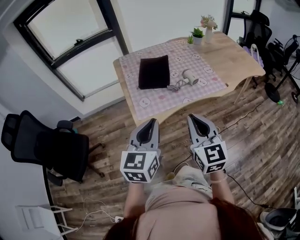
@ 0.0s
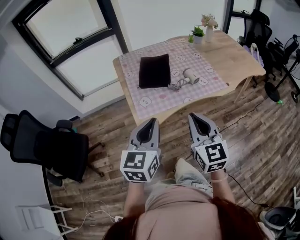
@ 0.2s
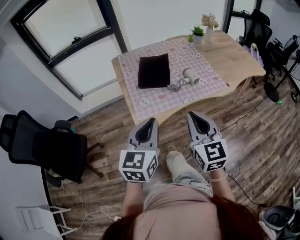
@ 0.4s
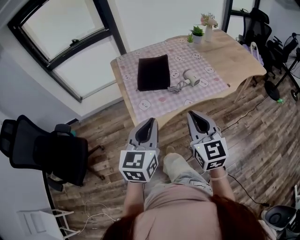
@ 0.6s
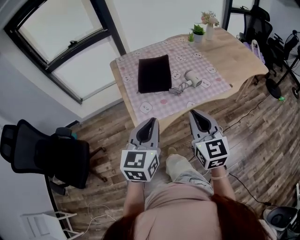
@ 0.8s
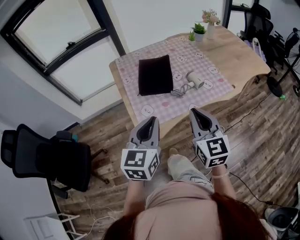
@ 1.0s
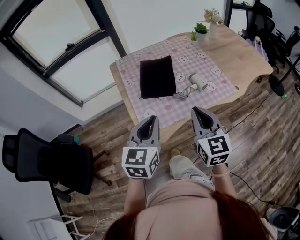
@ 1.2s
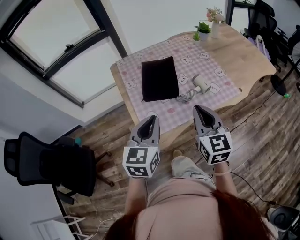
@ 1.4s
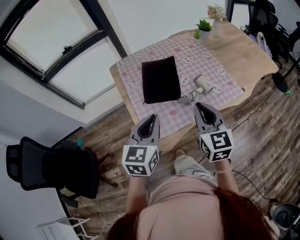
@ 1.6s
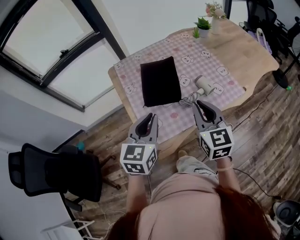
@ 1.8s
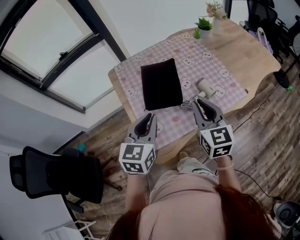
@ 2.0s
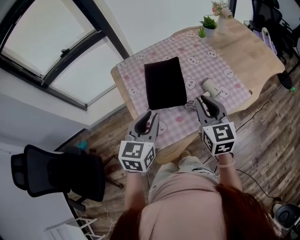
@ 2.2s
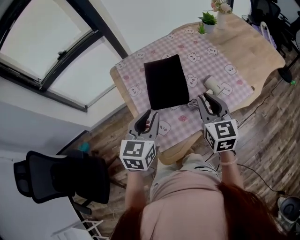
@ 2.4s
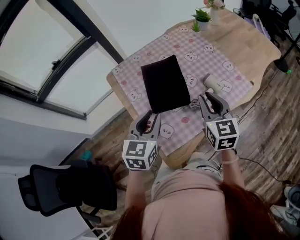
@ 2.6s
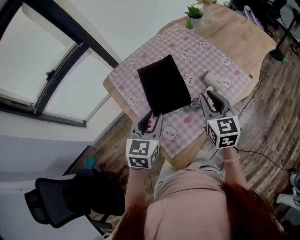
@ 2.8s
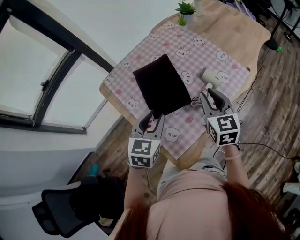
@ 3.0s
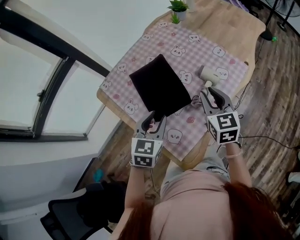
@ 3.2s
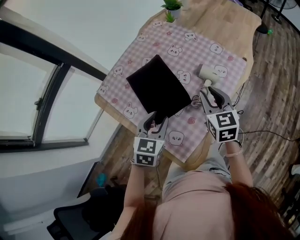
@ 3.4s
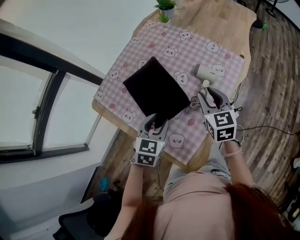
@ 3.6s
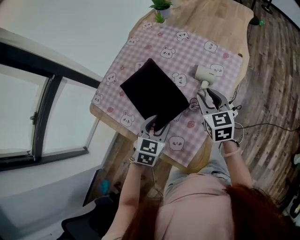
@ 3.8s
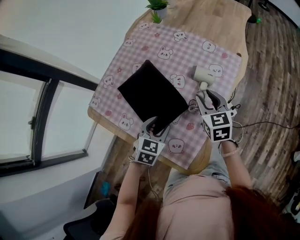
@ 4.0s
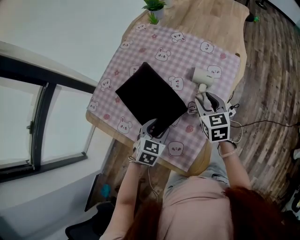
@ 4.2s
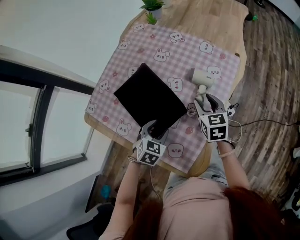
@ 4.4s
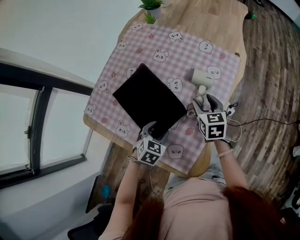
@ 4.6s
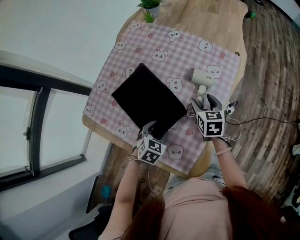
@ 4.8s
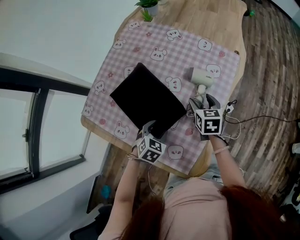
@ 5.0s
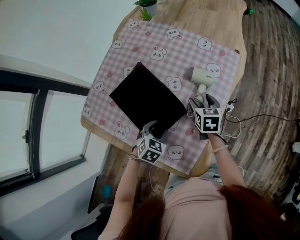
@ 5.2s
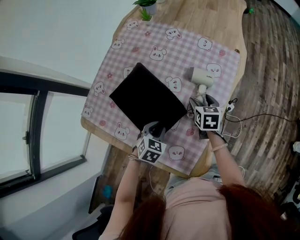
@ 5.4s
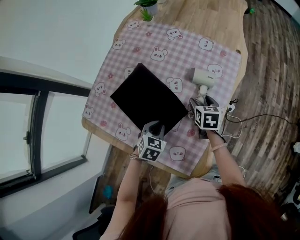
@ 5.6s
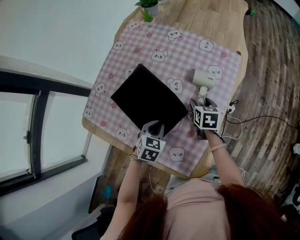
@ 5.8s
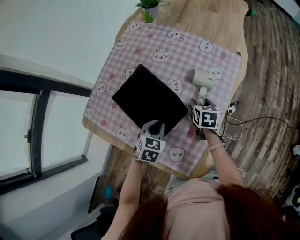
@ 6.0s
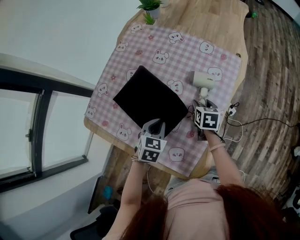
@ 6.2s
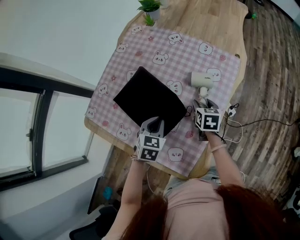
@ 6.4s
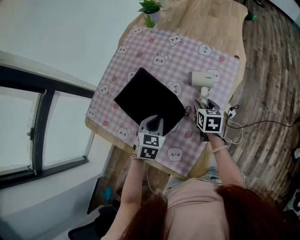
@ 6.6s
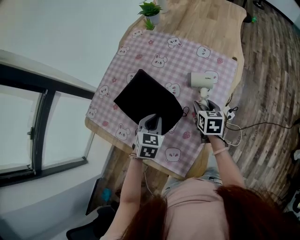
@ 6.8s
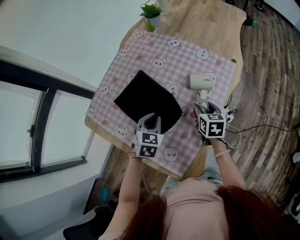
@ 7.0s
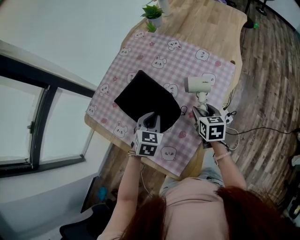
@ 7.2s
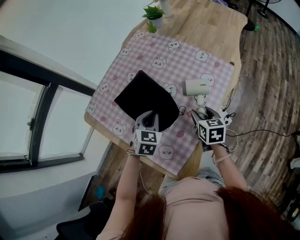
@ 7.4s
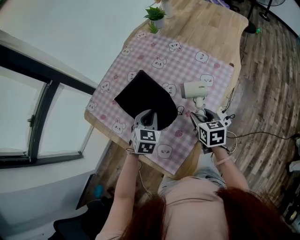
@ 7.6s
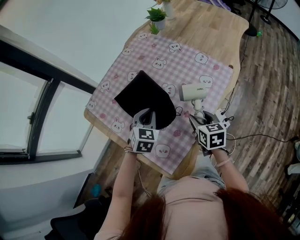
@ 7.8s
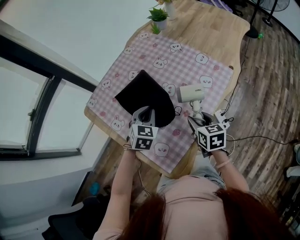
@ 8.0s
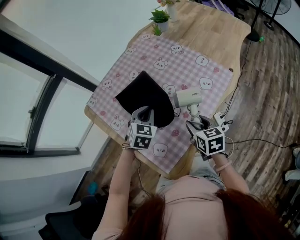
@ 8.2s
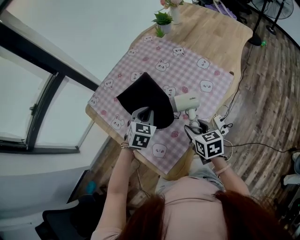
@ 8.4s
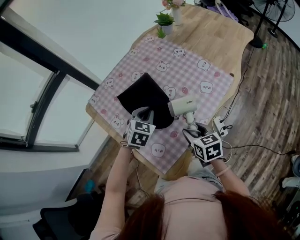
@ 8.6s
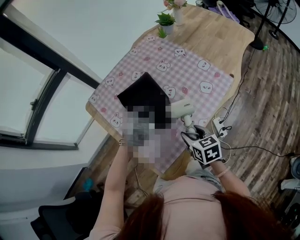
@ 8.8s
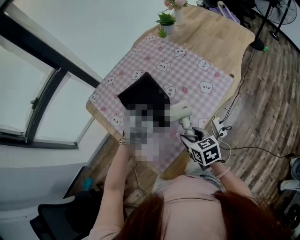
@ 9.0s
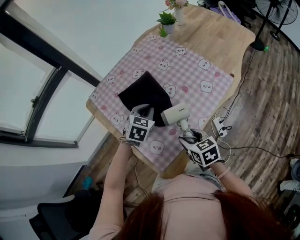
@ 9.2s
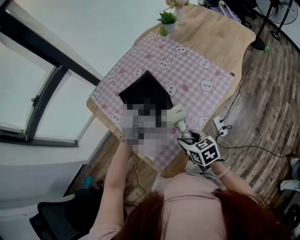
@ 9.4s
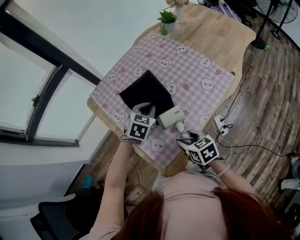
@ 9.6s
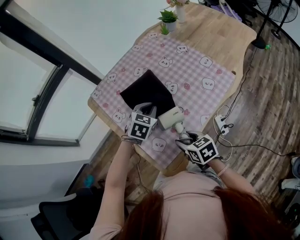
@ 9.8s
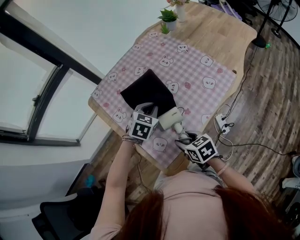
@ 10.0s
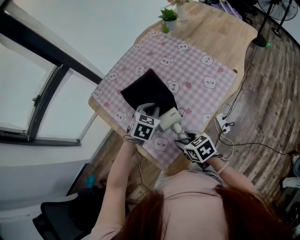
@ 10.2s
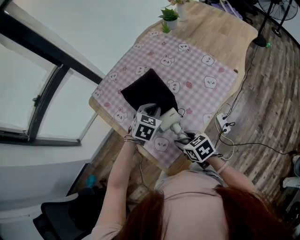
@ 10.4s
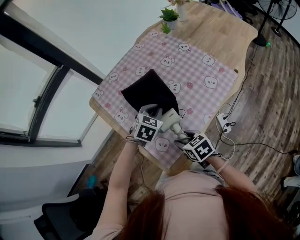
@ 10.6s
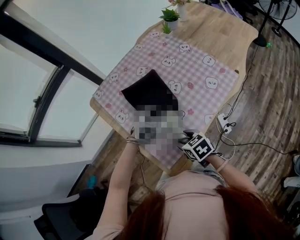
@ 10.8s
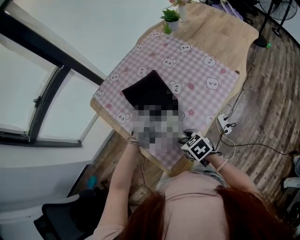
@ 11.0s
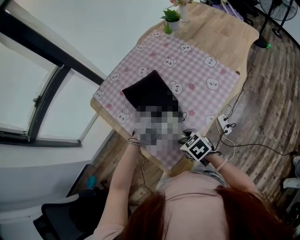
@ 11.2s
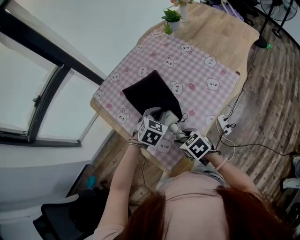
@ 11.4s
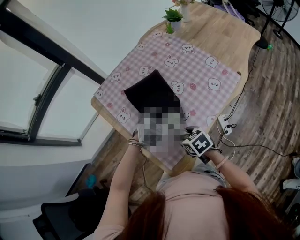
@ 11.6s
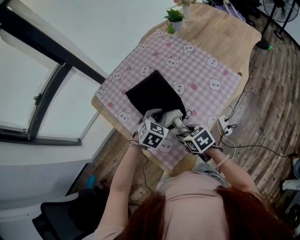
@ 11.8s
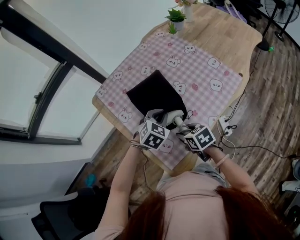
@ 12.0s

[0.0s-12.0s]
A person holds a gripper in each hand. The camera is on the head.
0.0s to 1.6s: Both grippers move forward, about 20 cm.
1.6s to 3.0s: The right gripper goes about 15 cm forward and downward, and swivels some 20 degrees. The left gripper is displaced forward, downward and to the left by about 20 cm, rotates about 30 degrees, and opens.
3.0s to 4.4s: The left gripper moves downward, some 20 cm, and swivels roughly 40 degrees, while the right gripper travels downward and forward by about 15 cm, and changes its angle by roughly 20 degrees.
4.4s to 6.0s: The left gripper closes its fingers. The right gripper shifts approximately 10 cm downward, and changes its angle by about 20 degrees.
6.0s to 7.6s: The right gripper heads upward and backward, covering approximately 10 cm, and changes its angle by approximately 20 degrees; the left gripper heads upward, covering roughly 10 cm.
7.6s to 9.0s: The right gripper goes roughly 10 cm backward and to the left, and rotates about 20 degrees.
9.0s to 10.4s: The right gripper travels to the left by approximately 5 cm.
10.4s to 12.0s: The grippers move only a little.

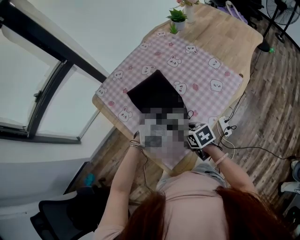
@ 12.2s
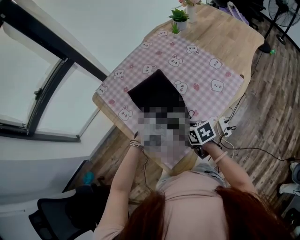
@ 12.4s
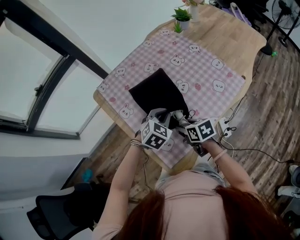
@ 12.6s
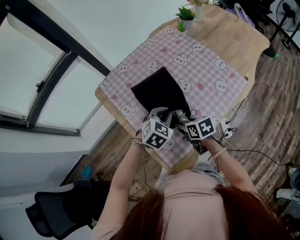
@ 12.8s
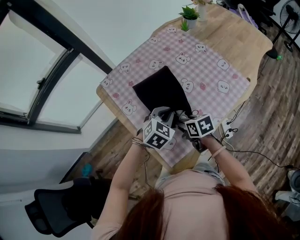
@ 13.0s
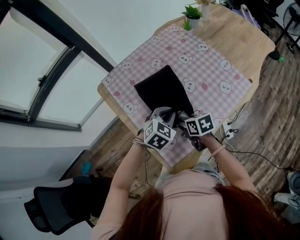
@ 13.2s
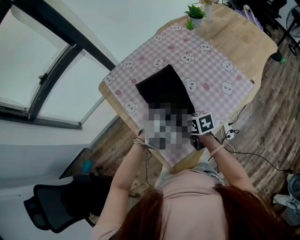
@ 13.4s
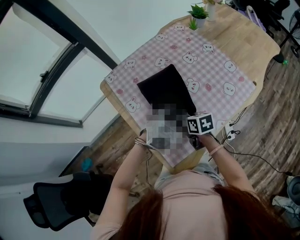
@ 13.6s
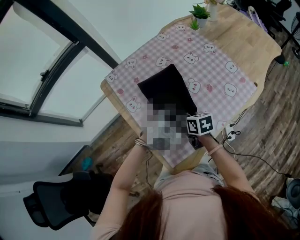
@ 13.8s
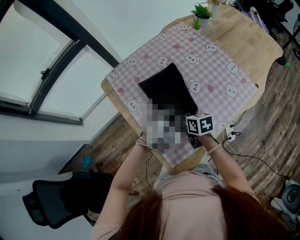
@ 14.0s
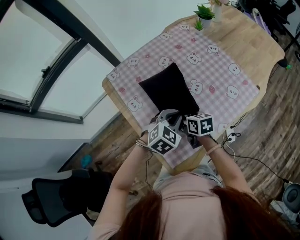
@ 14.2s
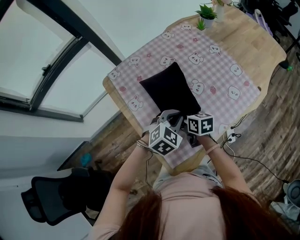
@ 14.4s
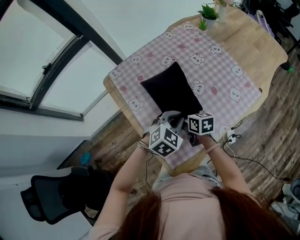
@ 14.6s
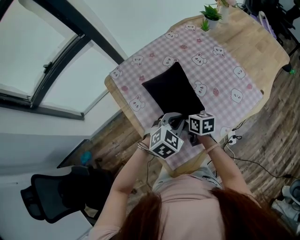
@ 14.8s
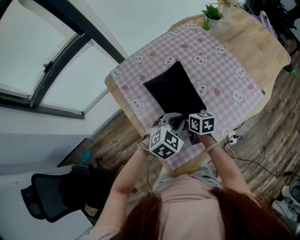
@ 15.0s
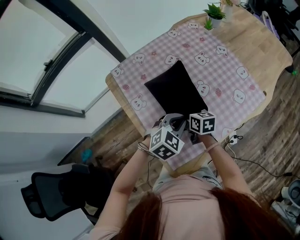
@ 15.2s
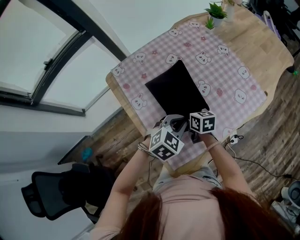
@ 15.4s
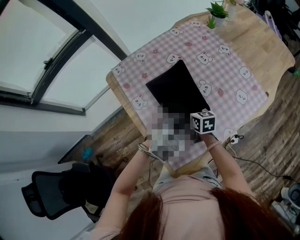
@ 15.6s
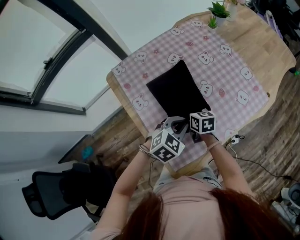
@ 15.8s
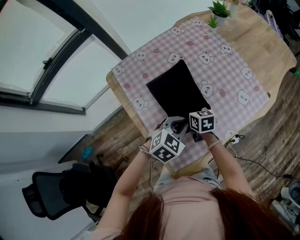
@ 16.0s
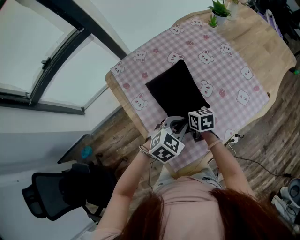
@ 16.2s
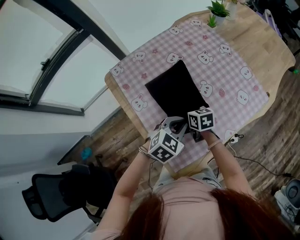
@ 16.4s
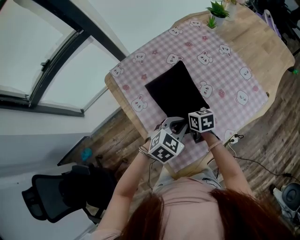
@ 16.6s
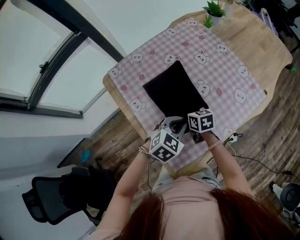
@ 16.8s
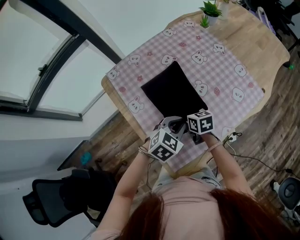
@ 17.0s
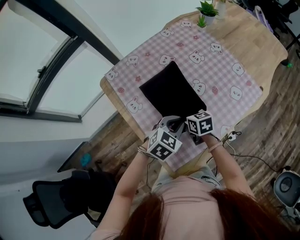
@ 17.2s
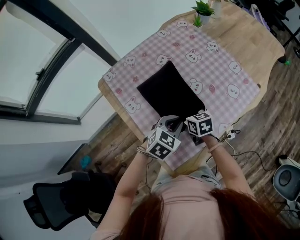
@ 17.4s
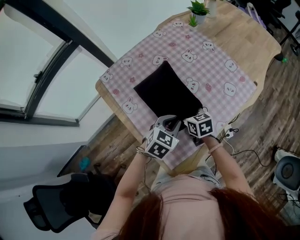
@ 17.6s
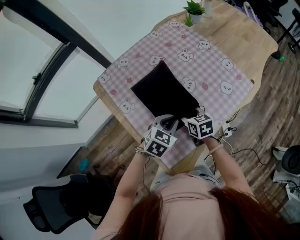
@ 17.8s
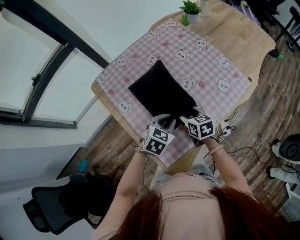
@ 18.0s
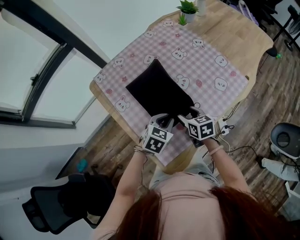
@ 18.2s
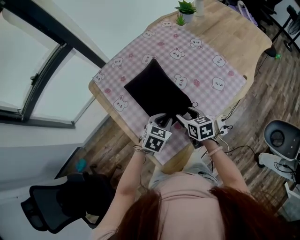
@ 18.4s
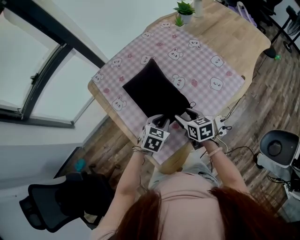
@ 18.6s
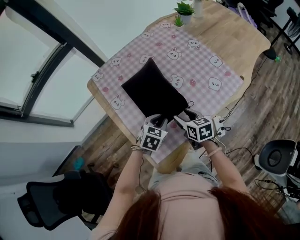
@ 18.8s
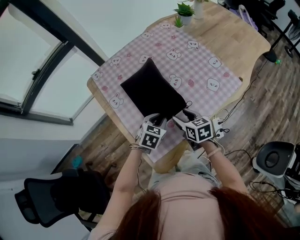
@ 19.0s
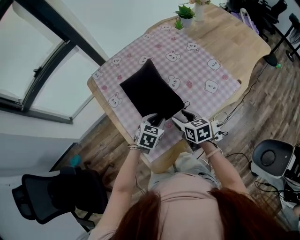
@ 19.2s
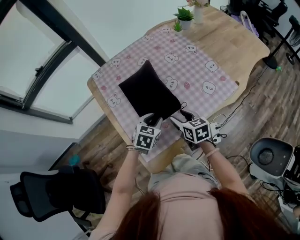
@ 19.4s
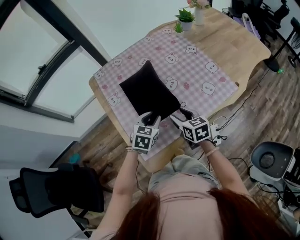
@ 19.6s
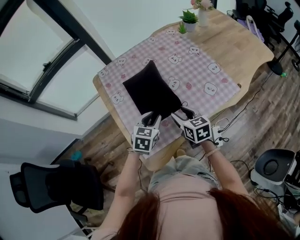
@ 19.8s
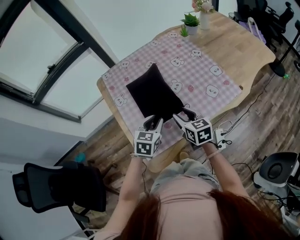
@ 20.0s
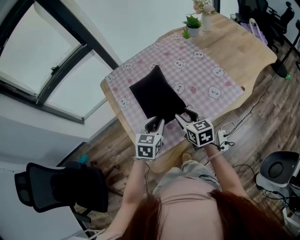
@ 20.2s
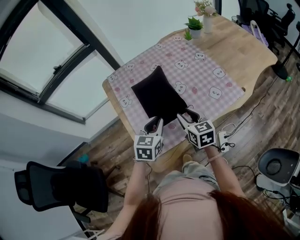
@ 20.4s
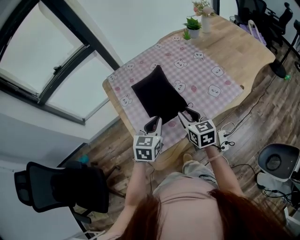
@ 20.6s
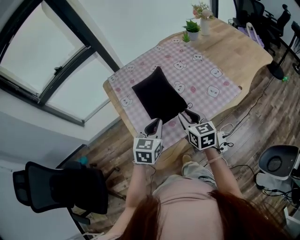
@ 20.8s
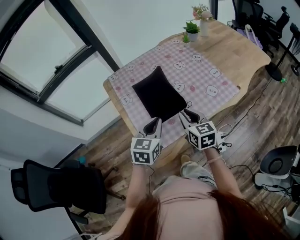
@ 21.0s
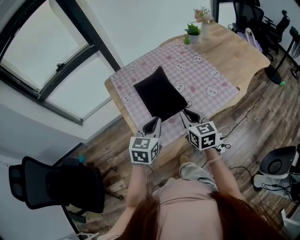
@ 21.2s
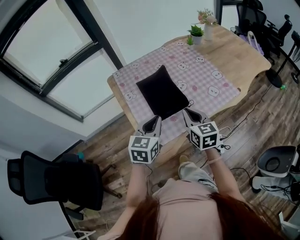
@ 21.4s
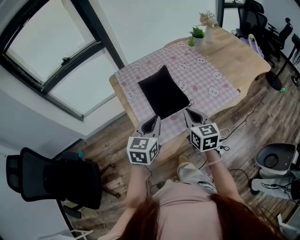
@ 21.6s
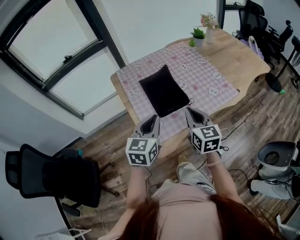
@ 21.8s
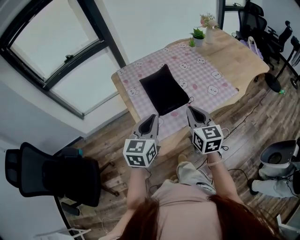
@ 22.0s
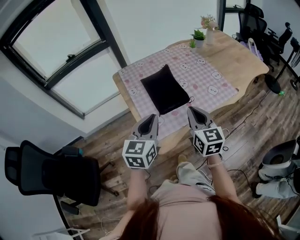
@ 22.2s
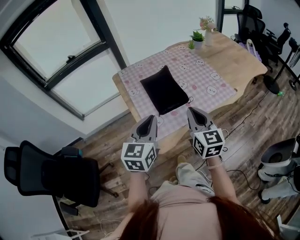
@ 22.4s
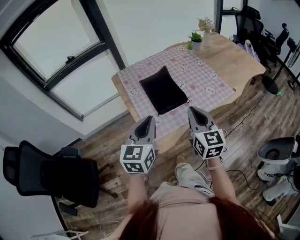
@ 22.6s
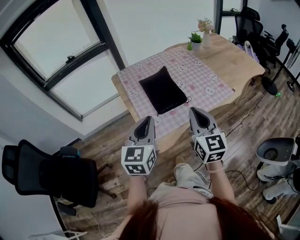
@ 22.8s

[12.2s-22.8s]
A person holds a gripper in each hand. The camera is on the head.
12.2s to 13.8s: The right gripper is displaced forward by about 10 cm.
13.8s to 15.2s: The right gripper shifts some 5 cm forward.
15.2s to 16.8s: The grippers move only a little.
16.8s to 18.2s: The right gripper goes some 10 cm to the right and backward.
18.2s to 19.8s: The right gripper goes about 5 cm upward and to the right, while the left gripper rotates about 20 degrees.
19.8s to 21.2s: The grippers both shift upward and backward by some 15 cm. The right gripper closes; the left gripper closes its fingers.
21.2s to 22.8s: The two grippers go roughly 15 cm backward and upward.

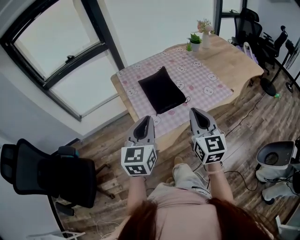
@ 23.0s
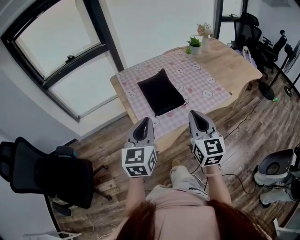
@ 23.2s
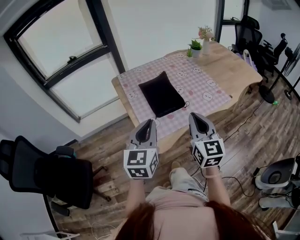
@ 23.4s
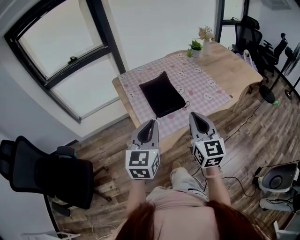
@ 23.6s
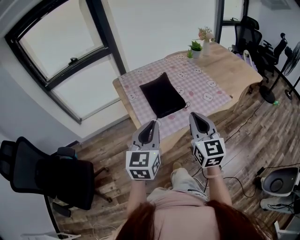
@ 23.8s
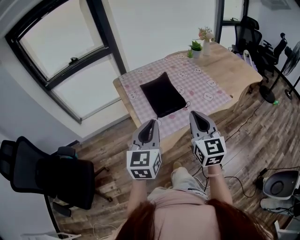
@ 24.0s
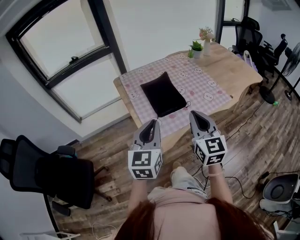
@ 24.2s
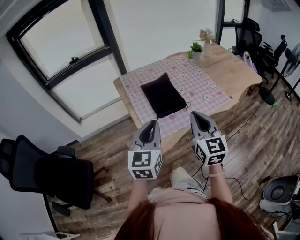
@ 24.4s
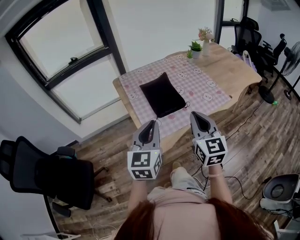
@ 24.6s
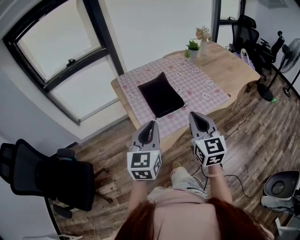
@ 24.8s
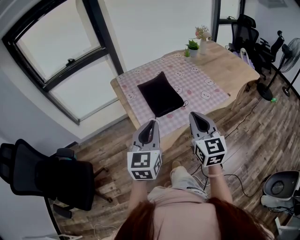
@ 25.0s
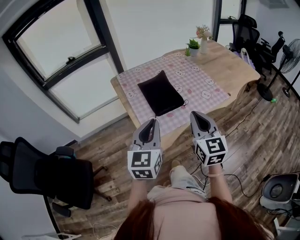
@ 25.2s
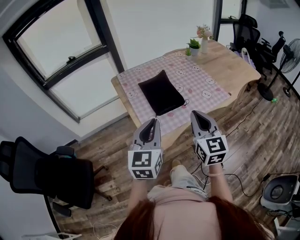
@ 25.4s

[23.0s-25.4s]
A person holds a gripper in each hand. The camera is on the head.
23.0s to 24.2s: The grippers make only small movements.
24.2s to 25.4s: Both grippers stay put.
